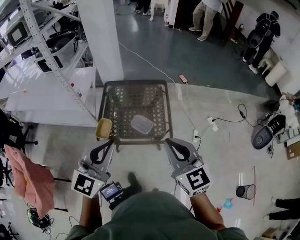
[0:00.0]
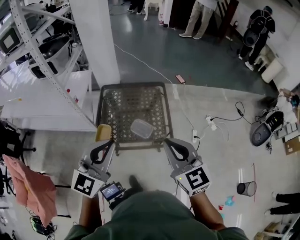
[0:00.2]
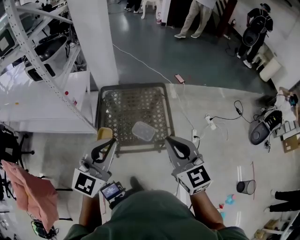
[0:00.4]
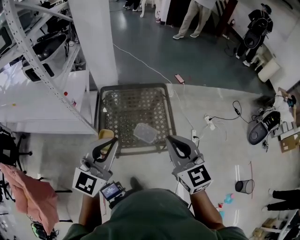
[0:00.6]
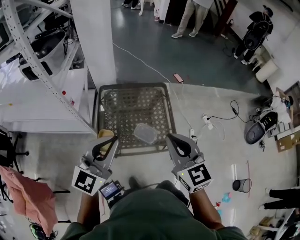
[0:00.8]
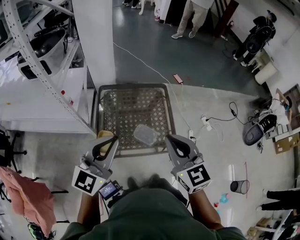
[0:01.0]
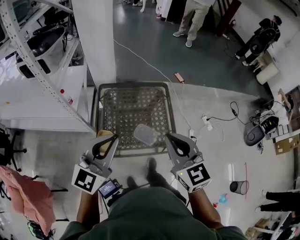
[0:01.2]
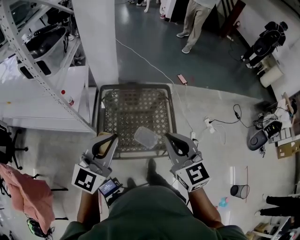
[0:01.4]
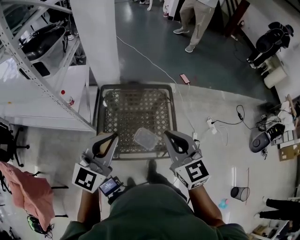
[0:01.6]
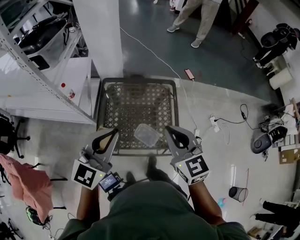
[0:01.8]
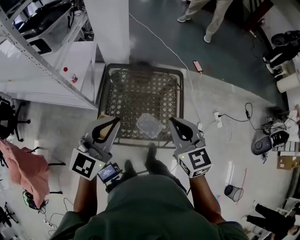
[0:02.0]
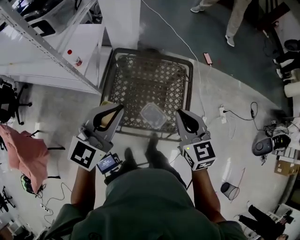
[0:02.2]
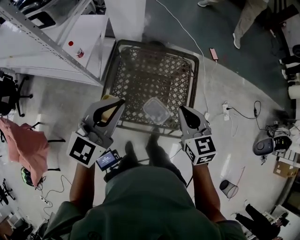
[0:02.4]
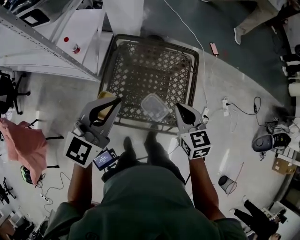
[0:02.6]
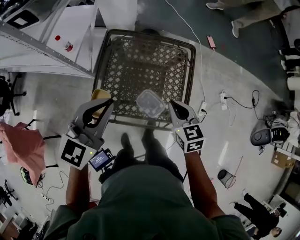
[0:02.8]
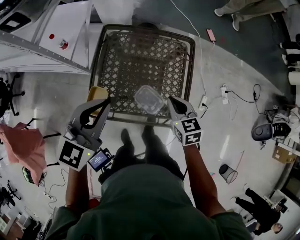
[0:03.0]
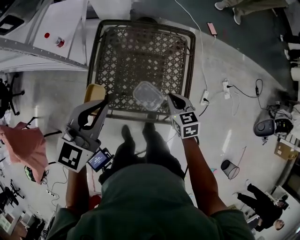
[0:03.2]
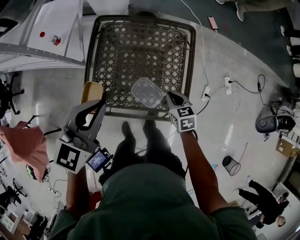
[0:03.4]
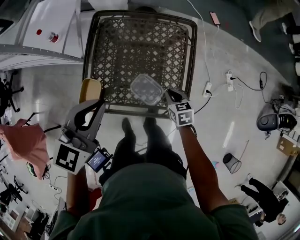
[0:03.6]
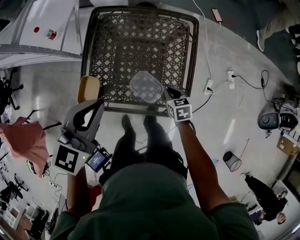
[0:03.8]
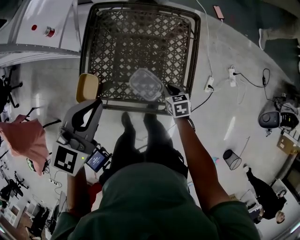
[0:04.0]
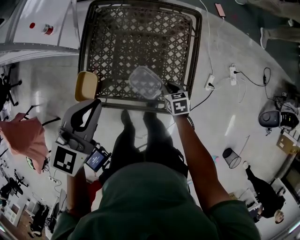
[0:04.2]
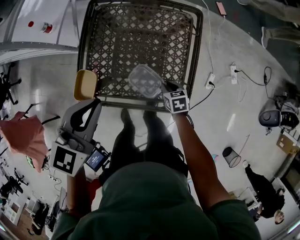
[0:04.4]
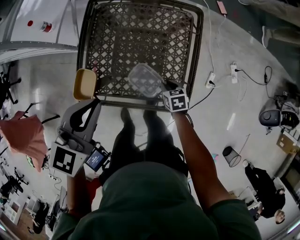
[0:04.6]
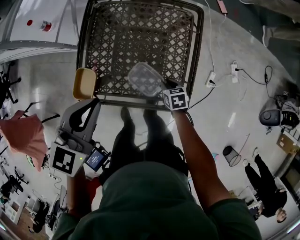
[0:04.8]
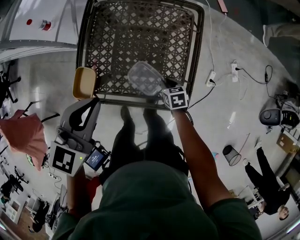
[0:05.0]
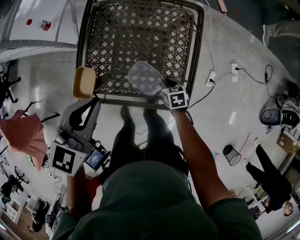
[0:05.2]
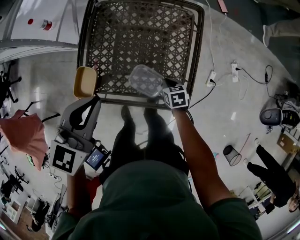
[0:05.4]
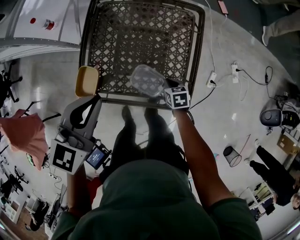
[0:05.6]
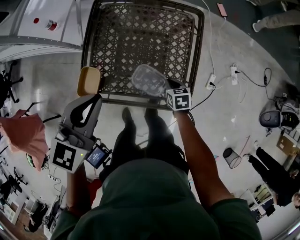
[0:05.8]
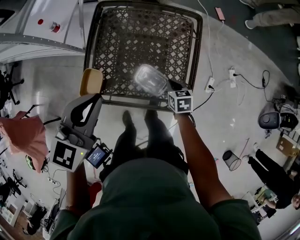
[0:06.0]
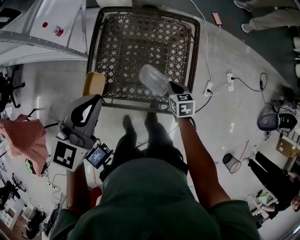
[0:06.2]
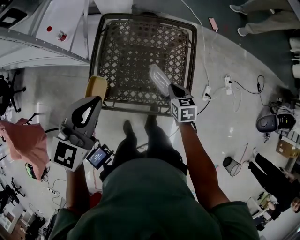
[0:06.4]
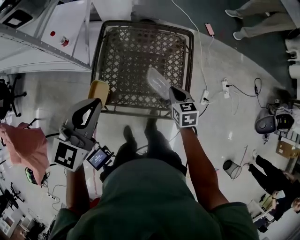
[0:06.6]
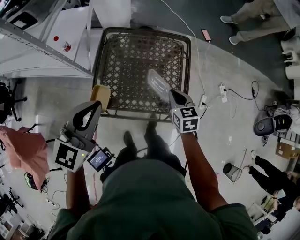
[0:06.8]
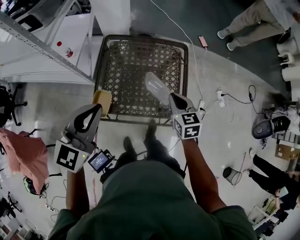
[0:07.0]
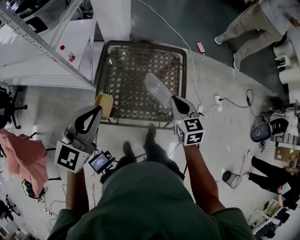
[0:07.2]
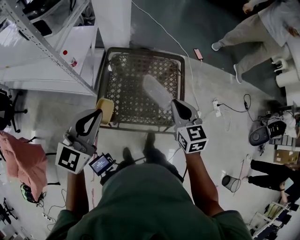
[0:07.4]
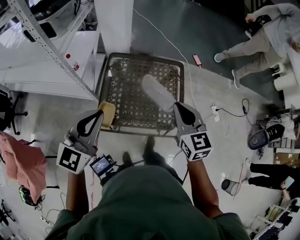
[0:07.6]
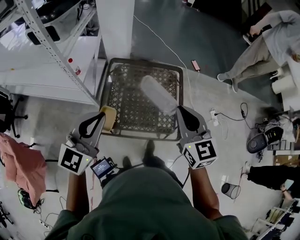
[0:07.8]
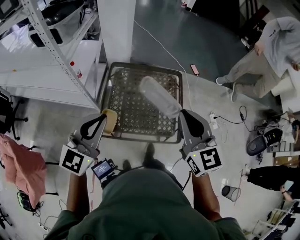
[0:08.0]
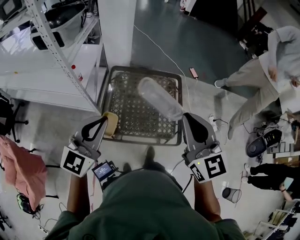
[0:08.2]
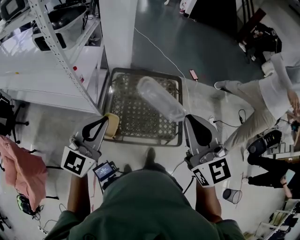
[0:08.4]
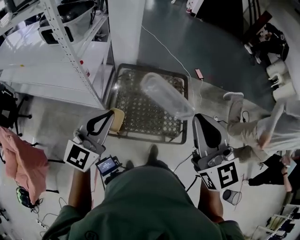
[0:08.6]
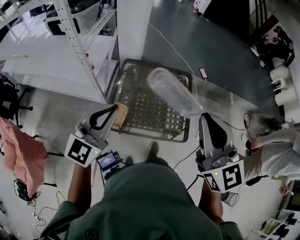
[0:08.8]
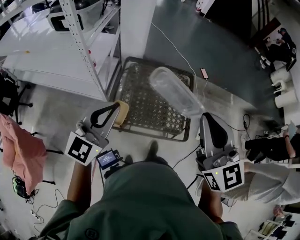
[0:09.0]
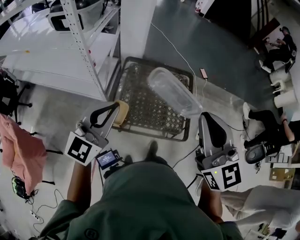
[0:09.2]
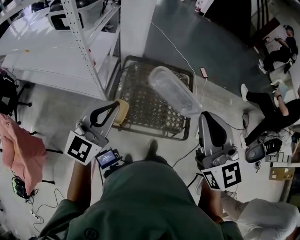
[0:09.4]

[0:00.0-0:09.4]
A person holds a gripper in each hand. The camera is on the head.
0:00.0 to 0:01.6: The left gripper shifts approximately 25 cm forward; the right gripper shifts roughly 25 cm forward and to the left.
0:01.6 to 0:03.2: The left gripper shifts some 20 cm downward and forward, while the right gripper travels downward by about 35 cm, and turns by approximately 30 degrees.
0:03.2 to 0:04.8: The left gripper moves downward, about 10 cm; the right gripper goes approximately 20 cm downward, and swivels approximately 20 degrees.
0:04.8 to 0:06.2: The left gripper moves upward, roughly 5 cm. The right gripper moves upward, some 10 cm, and closes its fingers.
0:06.2 to 0:07.8: The right gripper goes some 40 cm upward, and tips its fingers upward by roughly 40 degrees. The left gripper heads upward and backward, covering about 20 cm.
0:07.8 to 0:09.4: The right gripper travels upward, backward and to the left by about 15 cm. Meanwhile the left gripper ends up about 5 cm from where it was.

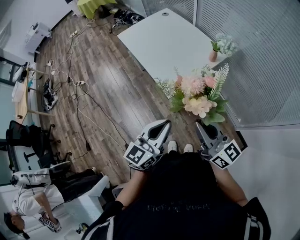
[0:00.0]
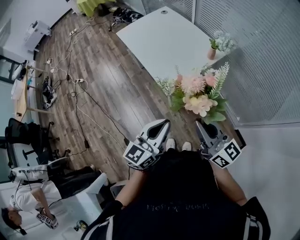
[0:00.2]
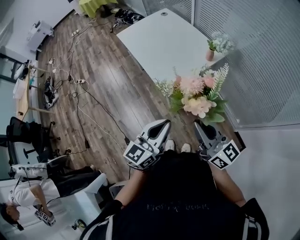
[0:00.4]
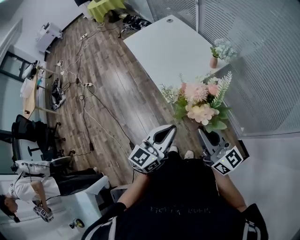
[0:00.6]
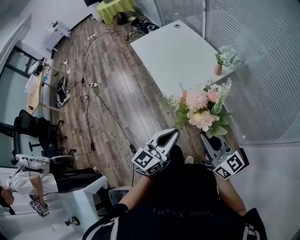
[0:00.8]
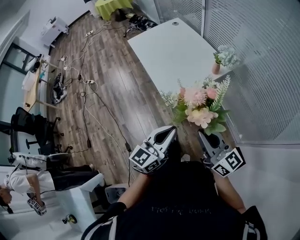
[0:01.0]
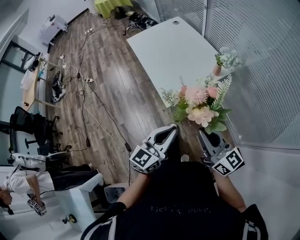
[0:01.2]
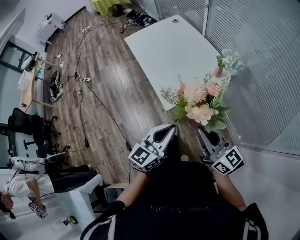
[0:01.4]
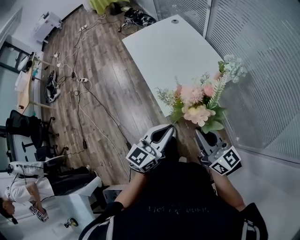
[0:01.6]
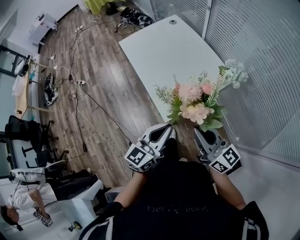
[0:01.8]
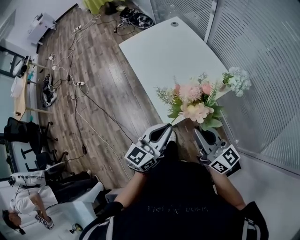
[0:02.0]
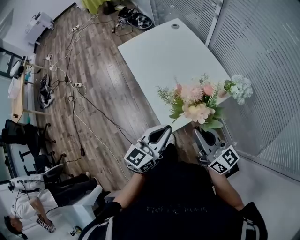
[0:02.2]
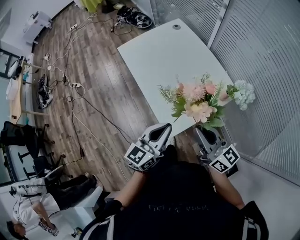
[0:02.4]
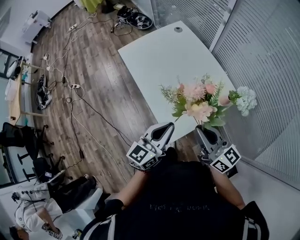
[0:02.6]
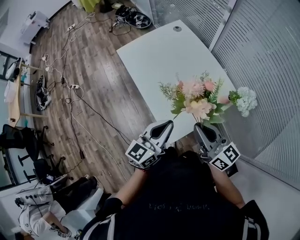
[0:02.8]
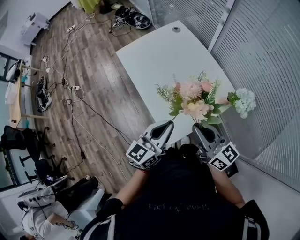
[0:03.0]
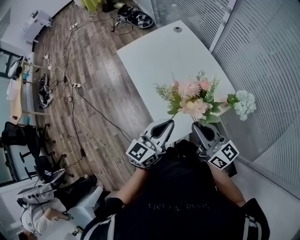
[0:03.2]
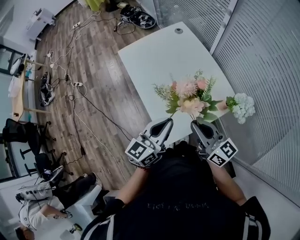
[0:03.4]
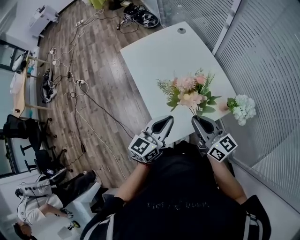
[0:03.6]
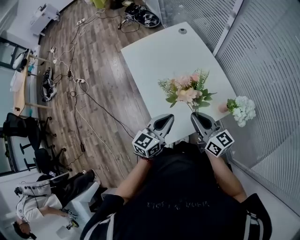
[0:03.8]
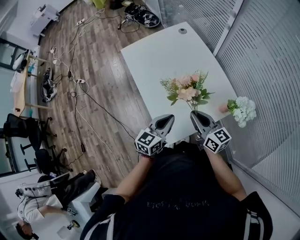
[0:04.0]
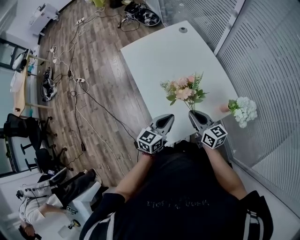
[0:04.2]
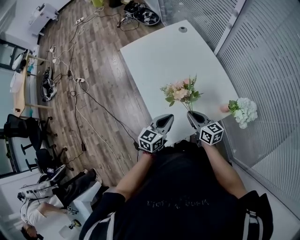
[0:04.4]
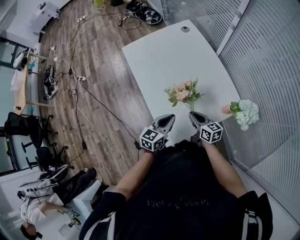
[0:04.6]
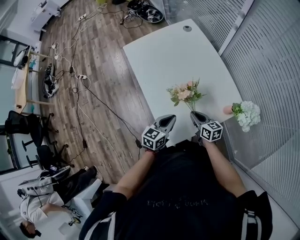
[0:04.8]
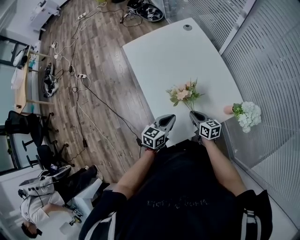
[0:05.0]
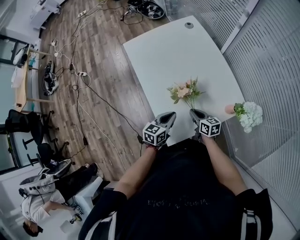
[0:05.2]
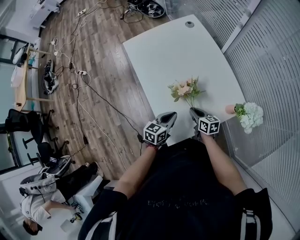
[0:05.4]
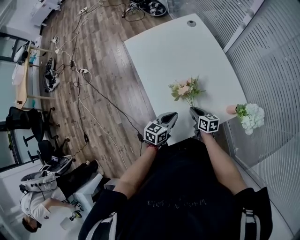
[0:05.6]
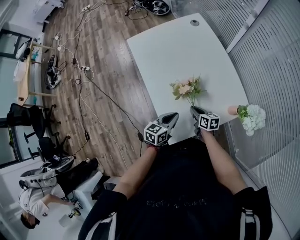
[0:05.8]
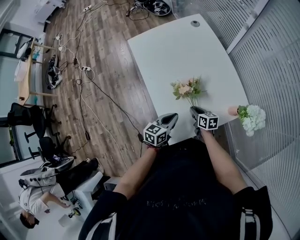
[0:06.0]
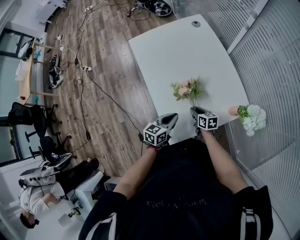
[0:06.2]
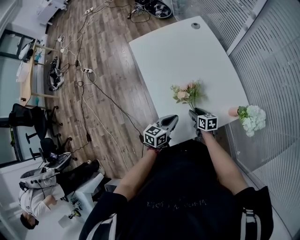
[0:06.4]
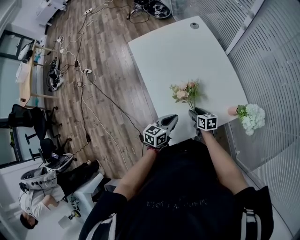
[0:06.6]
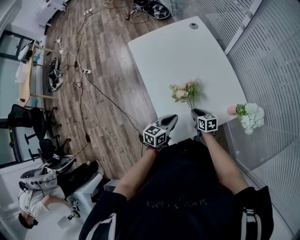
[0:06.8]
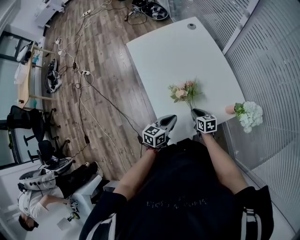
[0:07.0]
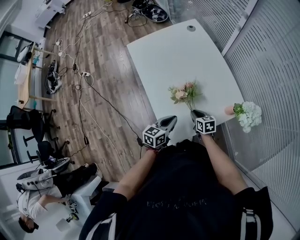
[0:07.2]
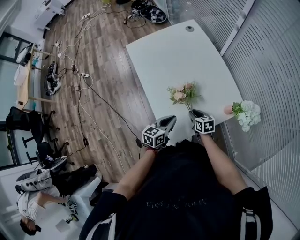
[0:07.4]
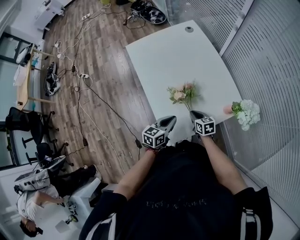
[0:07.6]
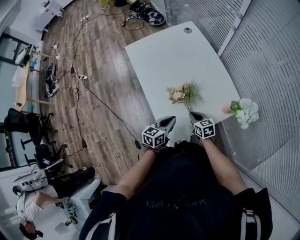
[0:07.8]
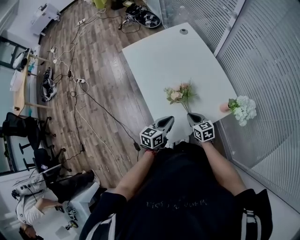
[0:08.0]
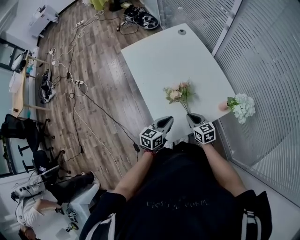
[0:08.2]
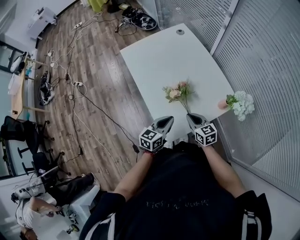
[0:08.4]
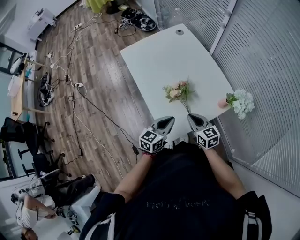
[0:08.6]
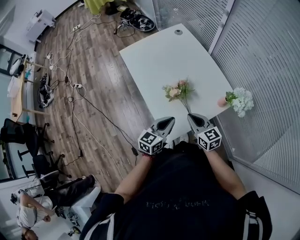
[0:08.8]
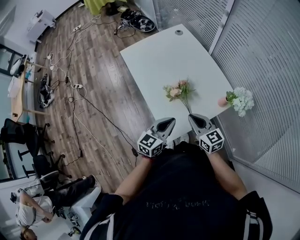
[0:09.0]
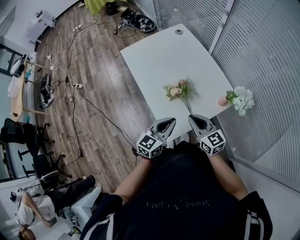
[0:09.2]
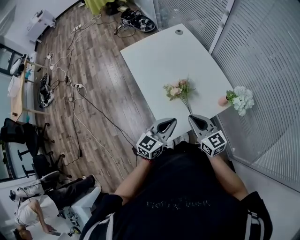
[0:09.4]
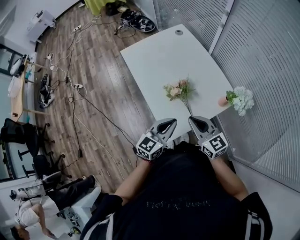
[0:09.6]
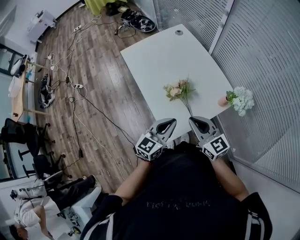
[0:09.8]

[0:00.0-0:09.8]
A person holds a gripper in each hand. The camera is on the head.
0:00.0 to 0:01.4: Both grippers travel together to the right, roughly 5 cm.
0:01.4 to 0:02.8: Both grippers travel together forward, about 25 cm.
0:02.8 to 0:04.2: The left gripper shifts some 15 cm downward; the right gripper moves downward and forward, about 15 cm.
0:04.2 to 0:05.6: The right gripper shifts some 15 cm downward, and swivels some 20 degrees; the left gripper goes some 10 cm downward.
0:05.6 to 0:07.0: The right gripper opens and closes again.
0:07.0 to 0:08.4: The right gripper goes roughly 10 cm upward; the left gripper shifts by roughly 5 cm.
0:08.4 to 0:09.8: The right gripper travels upward by approximately 15 cm, and changes its angle by about 20 degrees; the left gripper heads upward, covering approximately 10 cm.

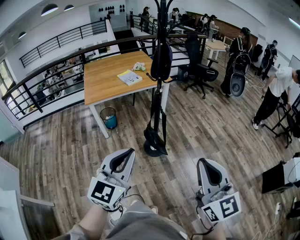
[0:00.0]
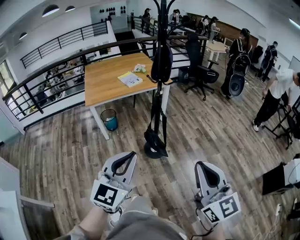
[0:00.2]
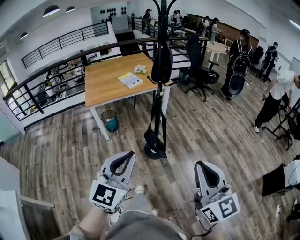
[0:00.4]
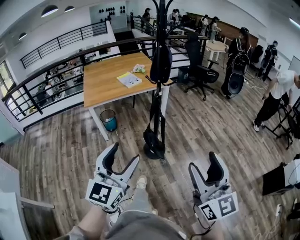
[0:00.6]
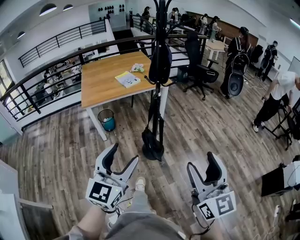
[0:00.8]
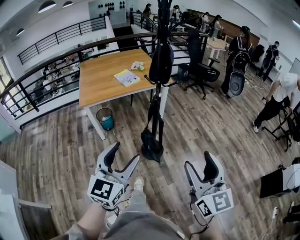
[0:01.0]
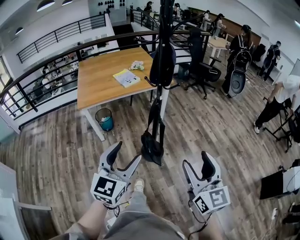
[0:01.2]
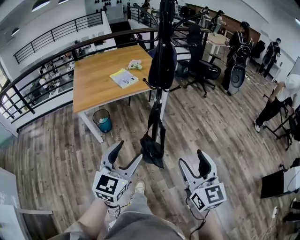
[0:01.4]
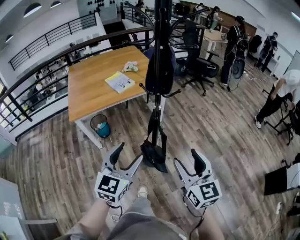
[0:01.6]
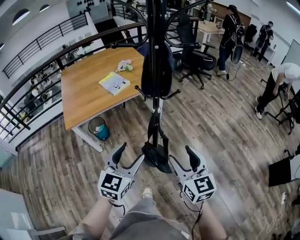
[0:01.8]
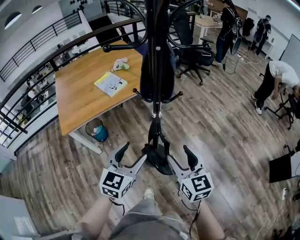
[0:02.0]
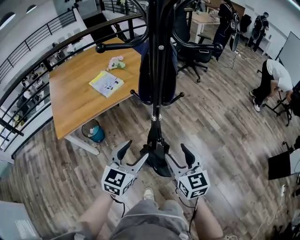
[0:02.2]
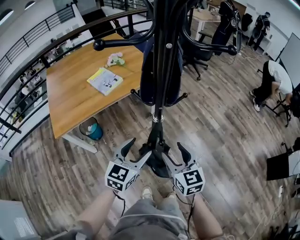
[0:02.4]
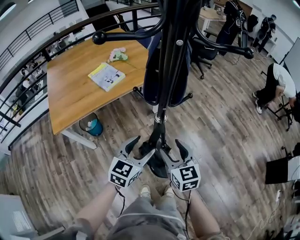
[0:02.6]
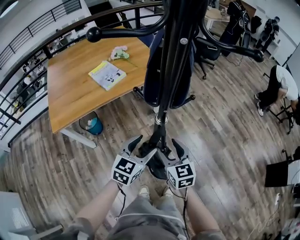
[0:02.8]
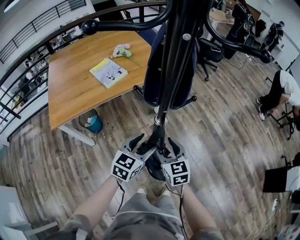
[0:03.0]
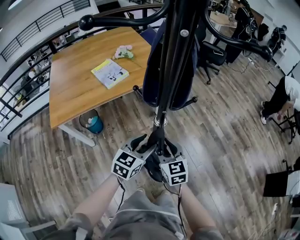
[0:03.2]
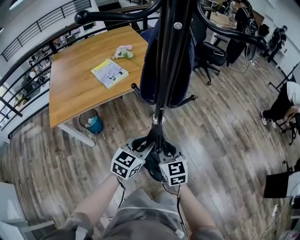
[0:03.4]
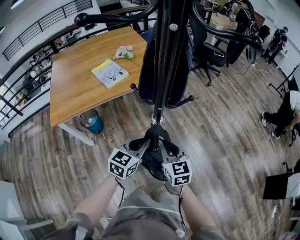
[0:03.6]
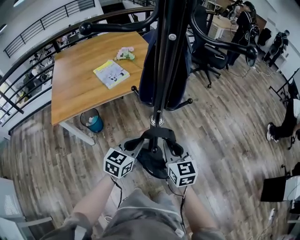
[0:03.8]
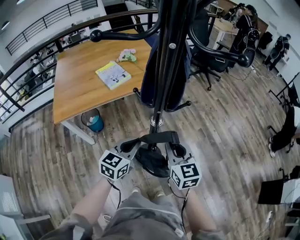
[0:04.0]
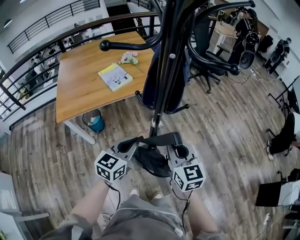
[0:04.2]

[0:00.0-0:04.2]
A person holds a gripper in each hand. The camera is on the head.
0:00.0 to 0:01.4: The right gripper moves forward and downward, about 25 cm, and opens up. Meanwhile the left gripper moves forward, some 20 cm, and opens up.
0:01.4 to 0:02.8: The right gripper goes approximately 35 cm forward, downward and to the left; the left gripper heads forward and downward, covering some 35 cm, and swivels some 20 degrees.
0:02.8 to 0:04.2: The left gripper travels upward by about 5 cm, and closes; the right gripper is displaced upward by approximately 10 cm, and closes its fingers.
